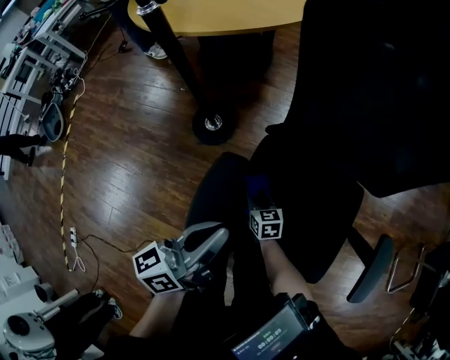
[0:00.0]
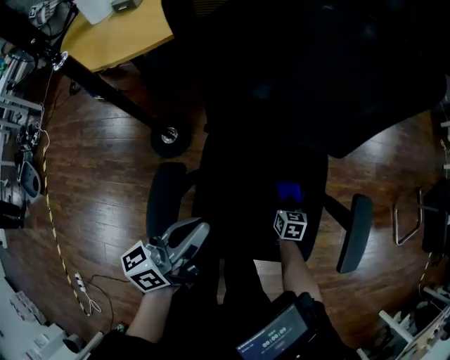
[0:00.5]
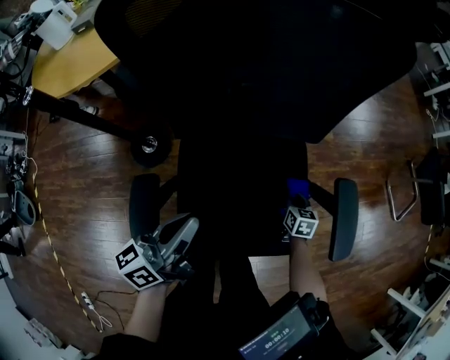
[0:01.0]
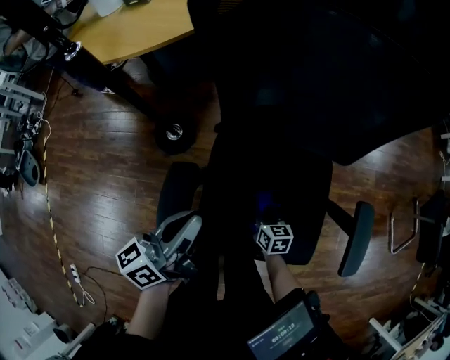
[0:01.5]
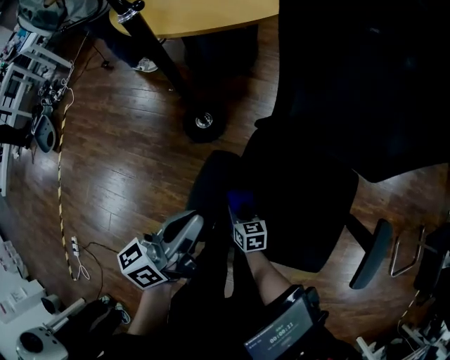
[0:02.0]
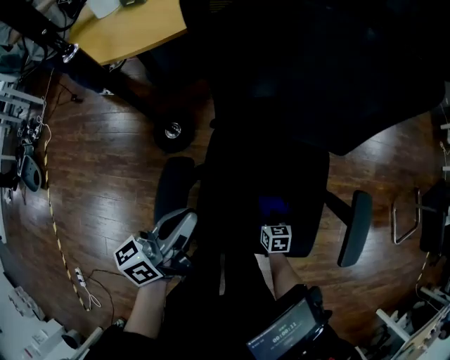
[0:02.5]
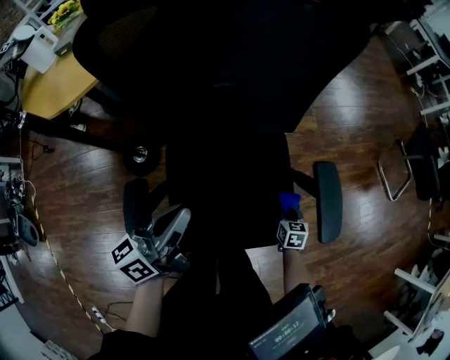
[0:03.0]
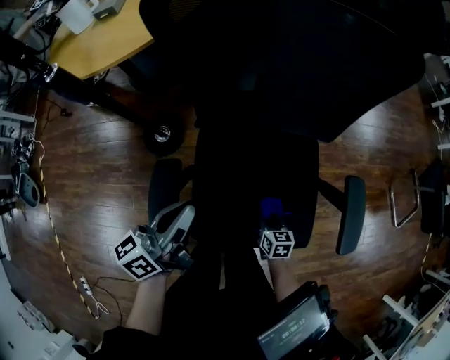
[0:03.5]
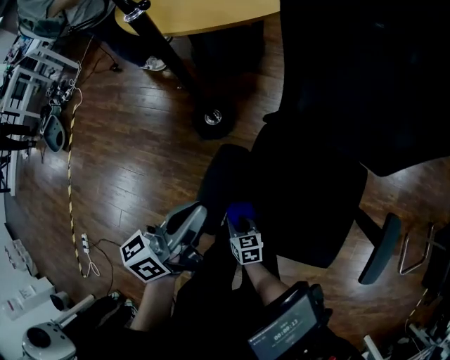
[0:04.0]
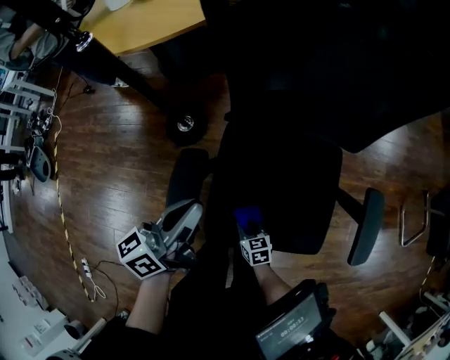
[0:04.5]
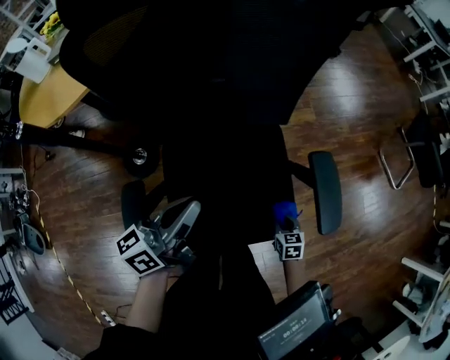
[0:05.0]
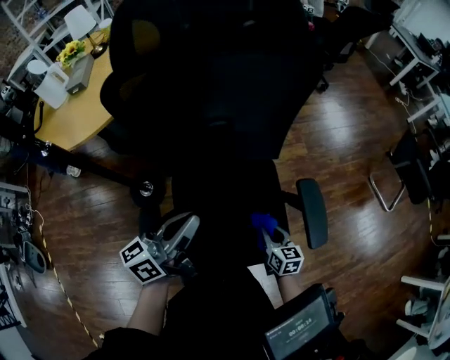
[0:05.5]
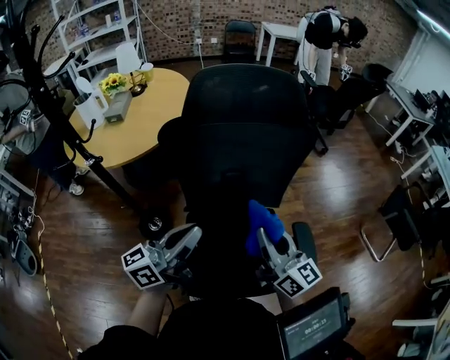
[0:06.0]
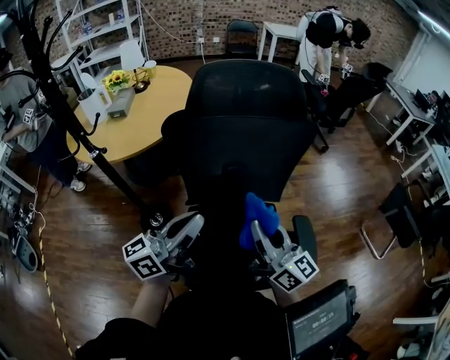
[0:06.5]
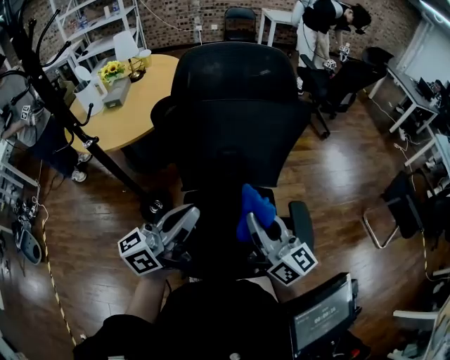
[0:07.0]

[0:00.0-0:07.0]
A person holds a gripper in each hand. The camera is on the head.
2.0 to 3.5 s: The right gripper swivels some 30 degrees, while the left gripper shifts by some 15 cm.
5.0 to 7.0 s: The left gripper shifts some 20 cm upward, and turns by some 20 degrees; the right gripper travels upward by approximately 50 cm, and tips its fingers upward by approximately 70 degrees.

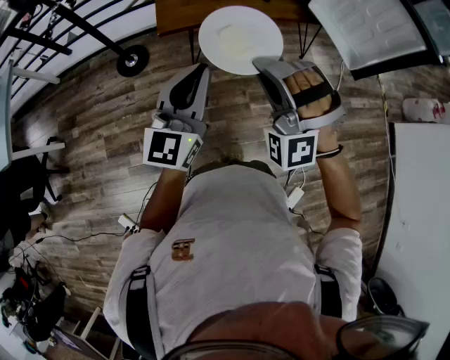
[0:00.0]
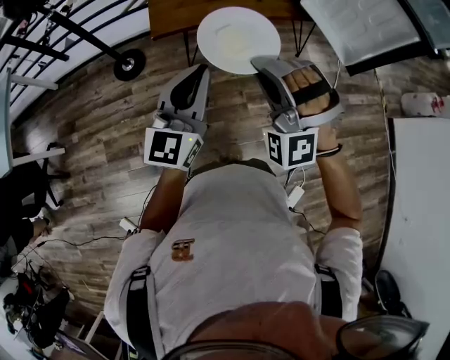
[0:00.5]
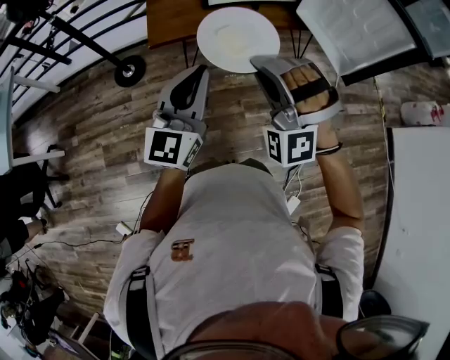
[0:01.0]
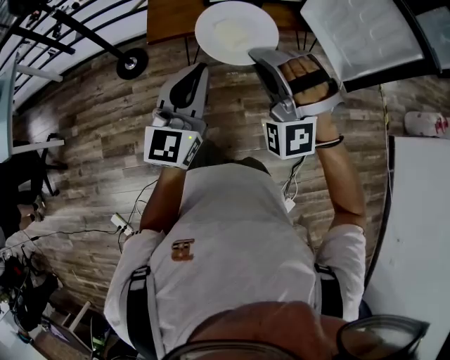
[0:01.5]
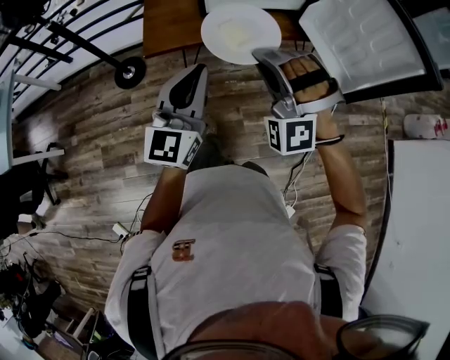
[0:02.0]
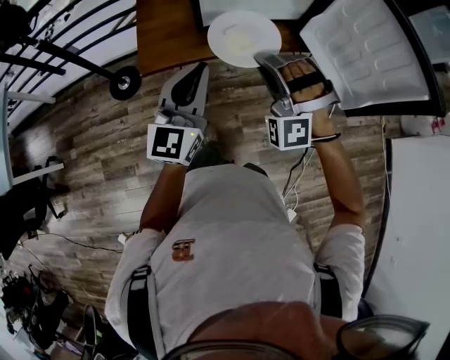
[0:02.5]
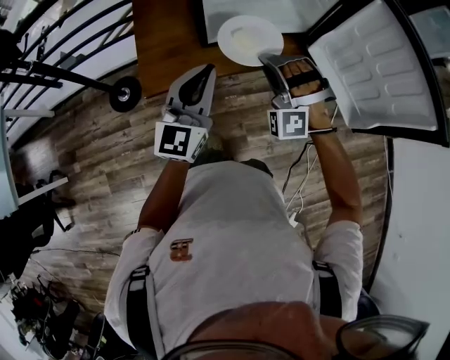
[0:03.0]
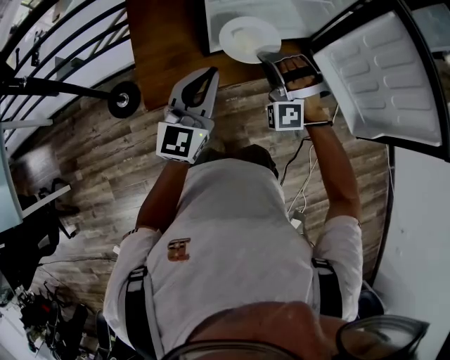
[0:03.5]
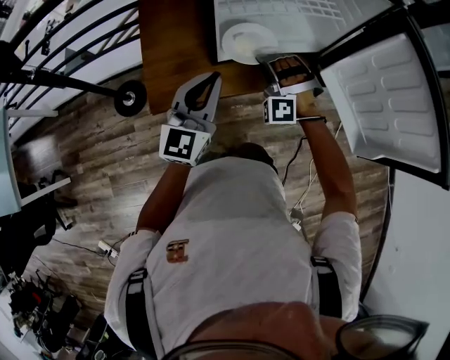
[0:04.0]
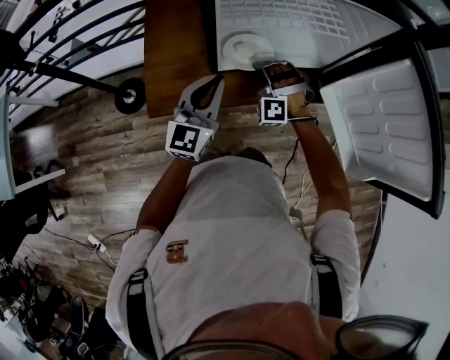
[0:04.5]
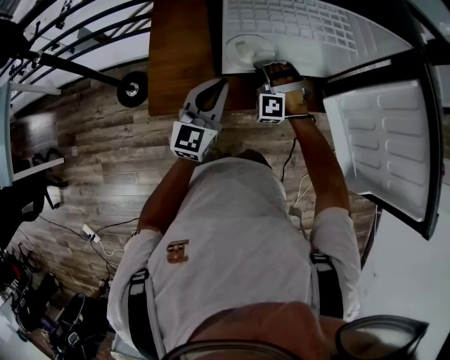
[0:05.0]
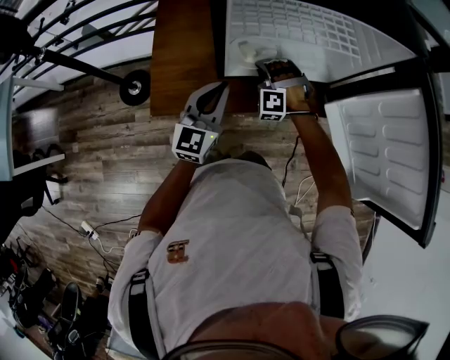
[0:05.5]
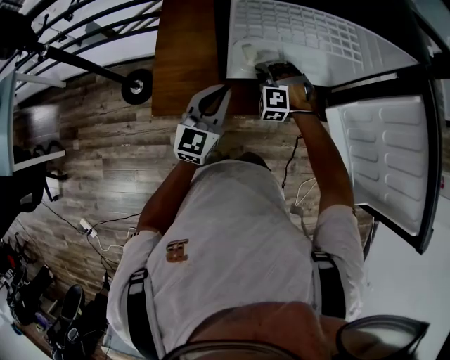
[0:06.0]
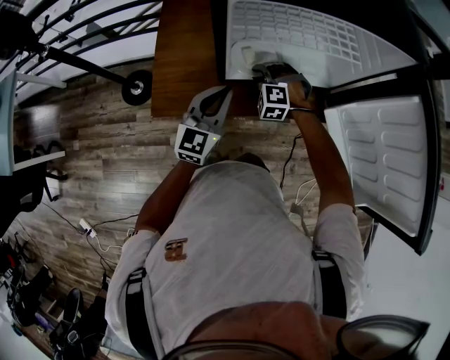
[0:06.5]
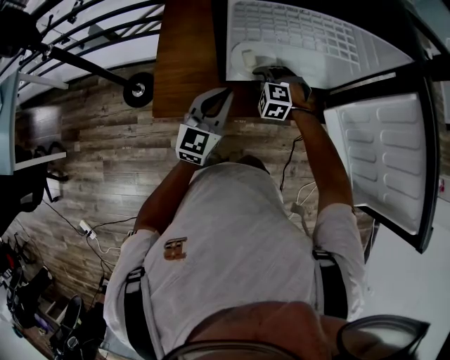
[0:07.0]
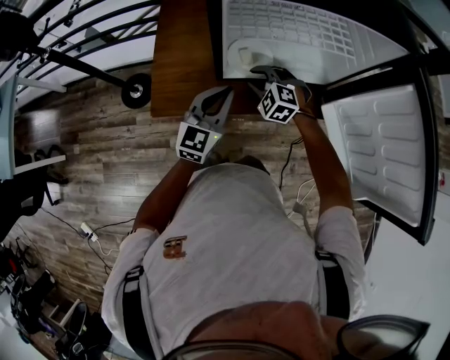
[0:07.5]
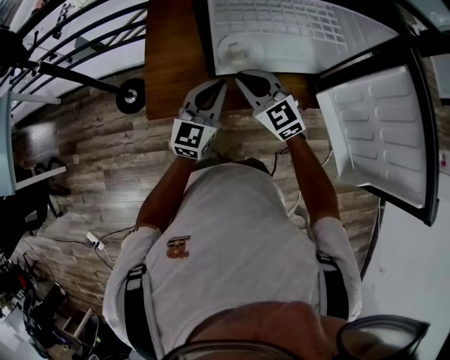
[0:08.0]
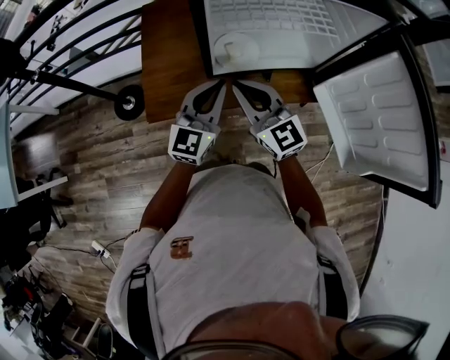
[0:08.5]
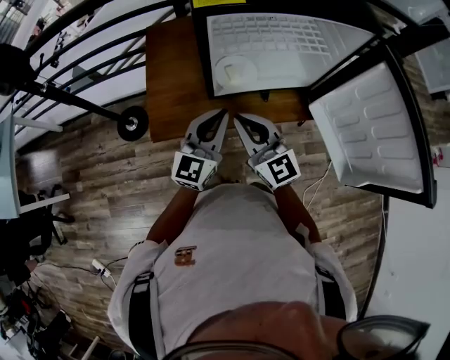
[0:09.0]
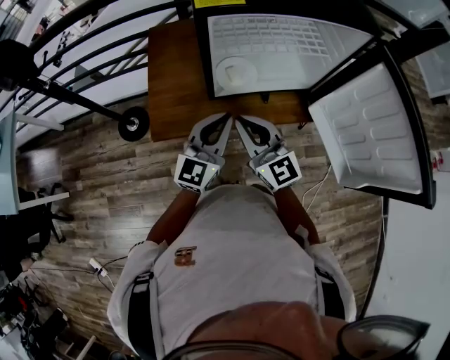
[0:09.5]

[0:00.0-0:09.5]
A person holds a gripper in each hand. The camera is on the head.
0.0 to 2.0 s: The left gripper ends up roughly 15 cm from where it was.
2.0 to 4.0 s: The left gripper moves about 30 cm.
4.0 to 5.5 s: The left gripper travels downward by approximately 5 cm.
7.5 to 9.5 s: The left gripper goes approximately 5 cm upward.

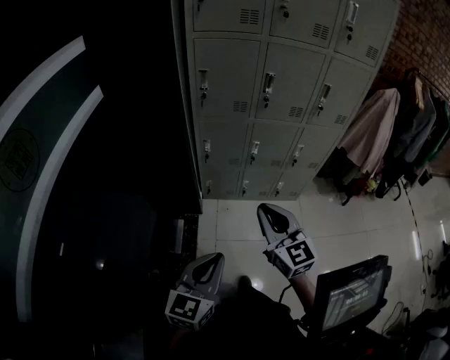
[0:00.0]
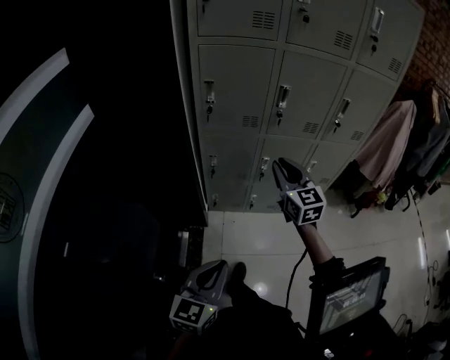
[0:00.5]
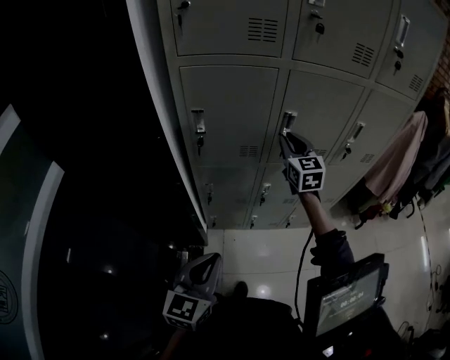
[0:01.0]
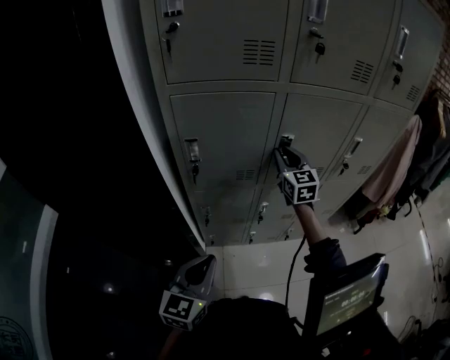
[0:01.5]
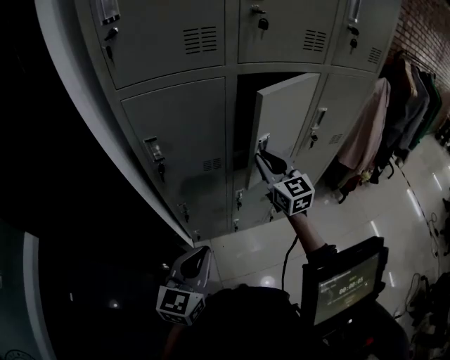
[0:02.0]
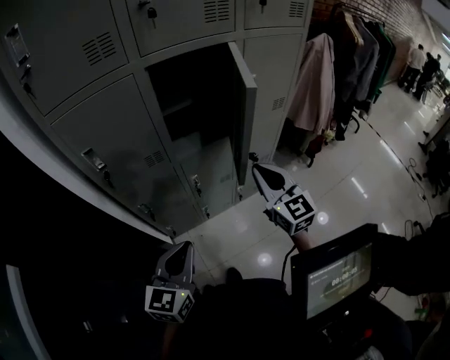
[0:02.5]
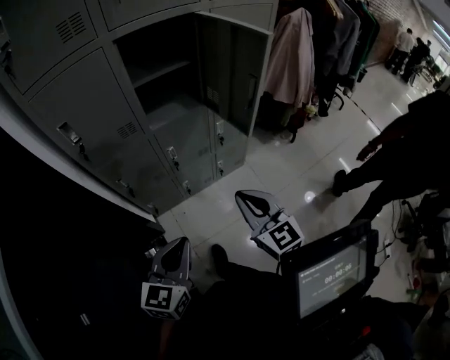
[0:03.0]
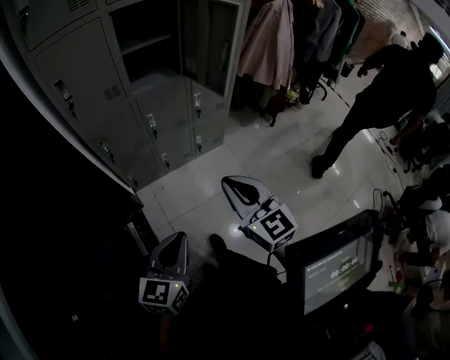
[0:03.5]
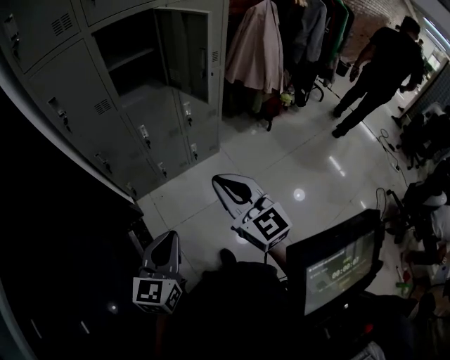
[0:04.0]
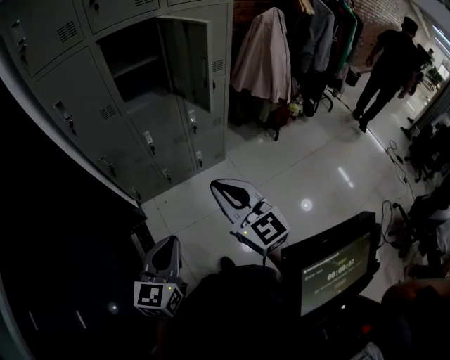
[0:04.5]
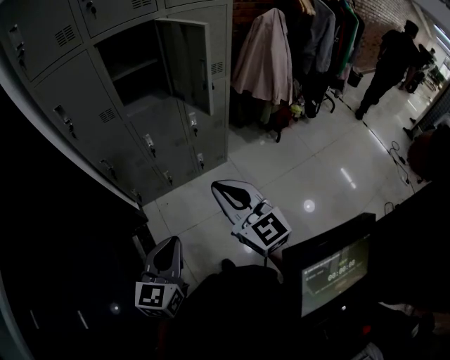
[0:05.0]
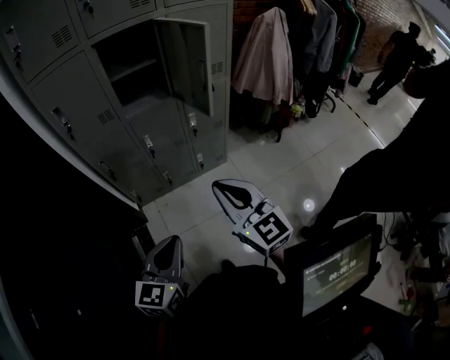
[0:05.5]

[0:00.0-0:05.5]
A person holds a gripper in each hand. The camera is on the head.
0.0 to 2.0 s: Both grippers move forward, some 40 cm.
2.0 to 3.5 s: Both grippers move backward and to the right, approximately 40 cm.
3.5 to 5.5 s: Both grippers move to the right, about 10 cm.

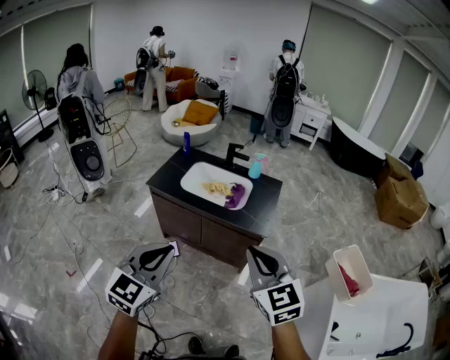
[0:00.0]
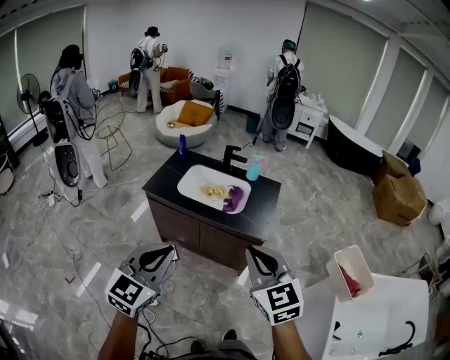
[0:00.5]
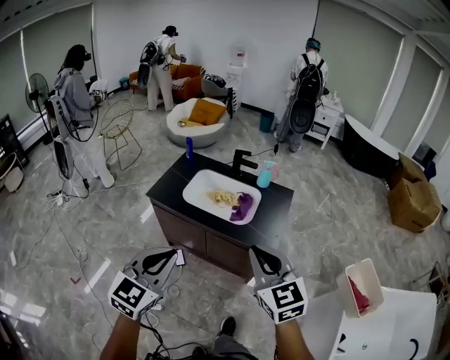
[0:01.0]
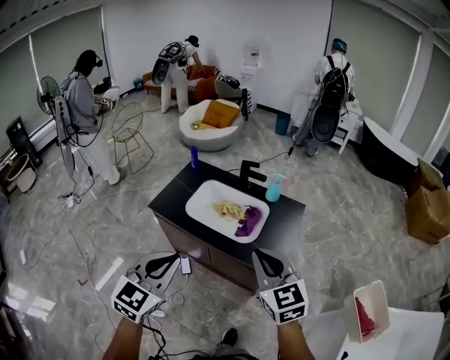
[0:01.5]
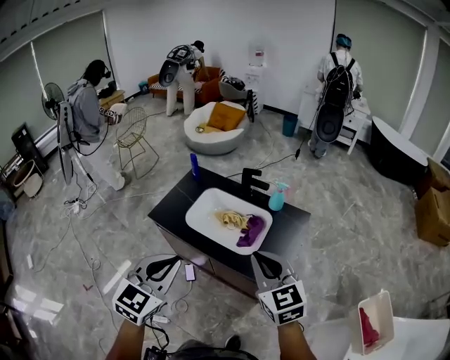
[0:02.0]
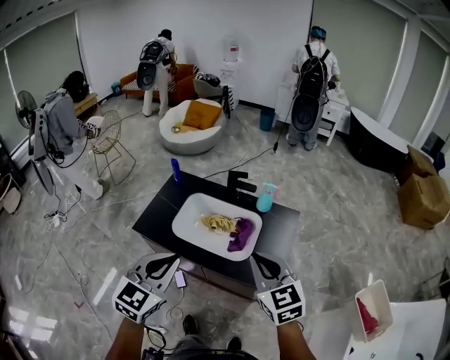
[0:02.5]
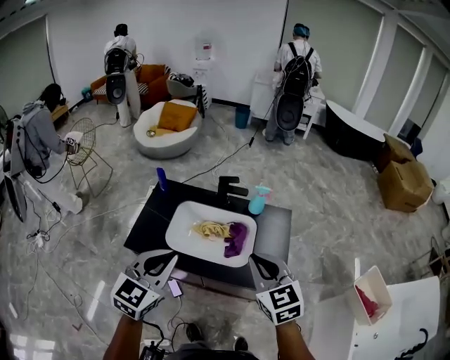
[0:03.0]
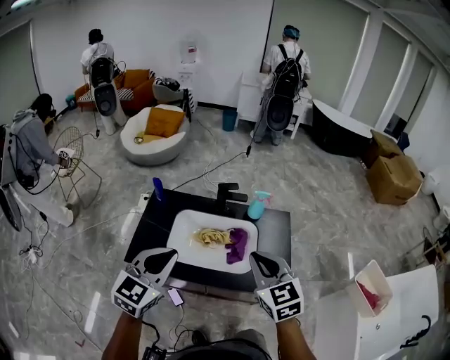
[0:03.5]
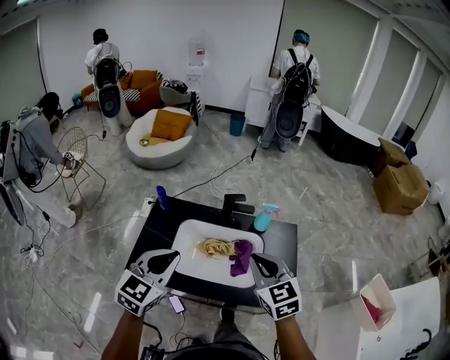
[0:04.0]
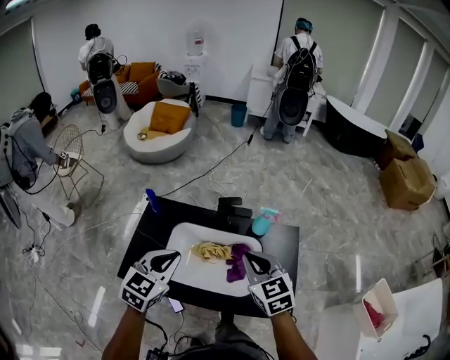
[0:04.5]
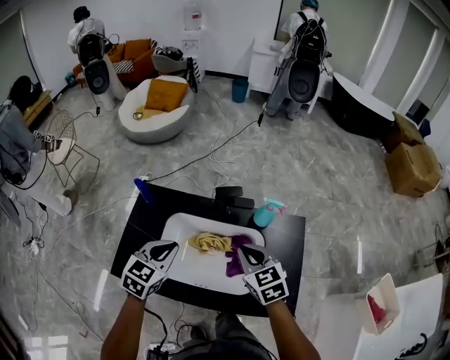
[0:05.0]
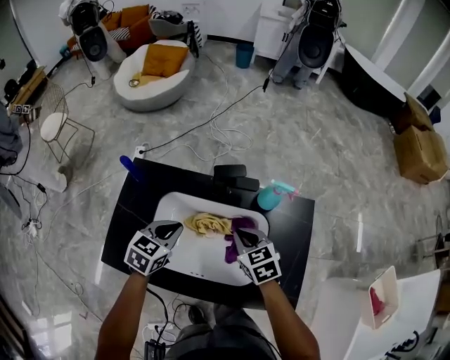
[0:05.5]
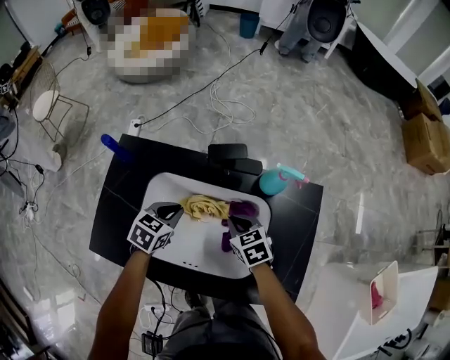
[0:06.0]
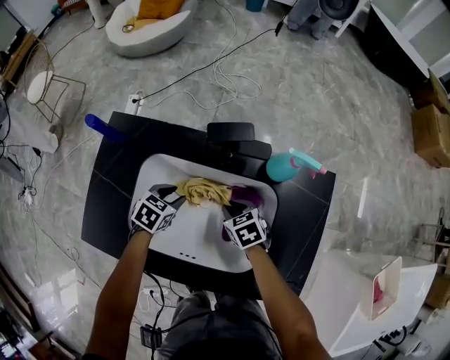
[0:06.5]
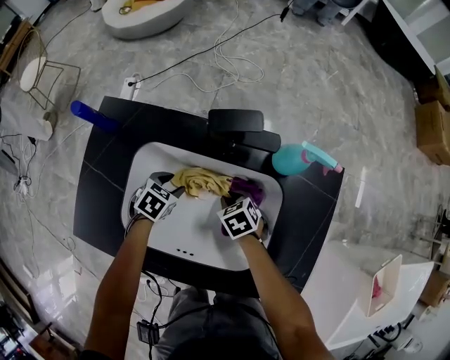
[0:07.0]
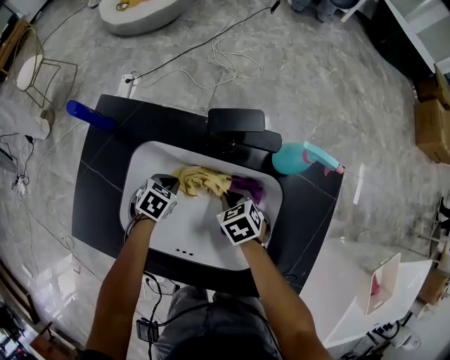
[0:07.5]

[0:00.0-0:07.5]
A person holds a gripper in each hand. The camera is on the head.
0.0 to 2.0 s: The grippers both shift forward by approximately 35 cm.
2.0 to 4.0 s: The grippers both shift forward and to the left by some 25 cm. The right gripper rotates some 20 degrees.
4.0 to 5.5 s: Both grippers travel together downward and forward, roughly 35 cm. The left gripper rotates some 30 degrees; the right gripper swivels approximately 20 degrees.
5.5 to 7.5 s: The two grippers go about 25 cm downward. The left gripper changes its angle by some 30 degrees, and opens, then closes once more. The right gripper changes its angle by roughly 20 degrees.
